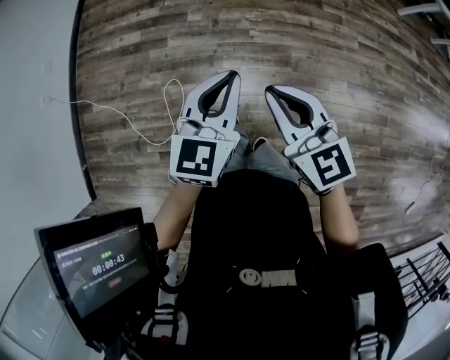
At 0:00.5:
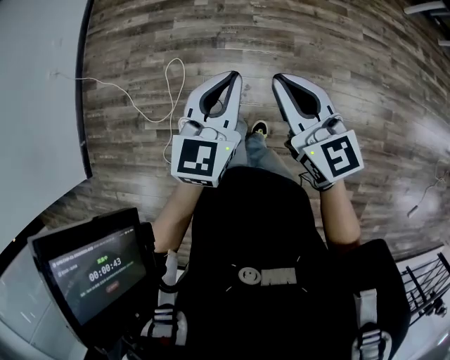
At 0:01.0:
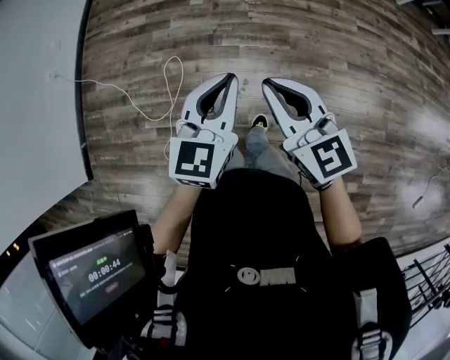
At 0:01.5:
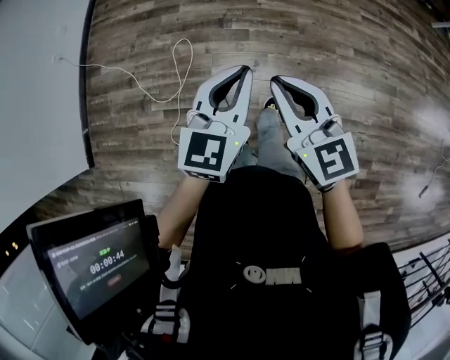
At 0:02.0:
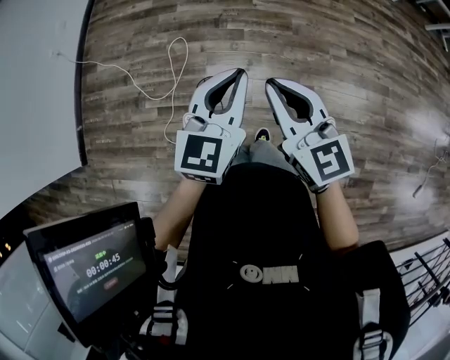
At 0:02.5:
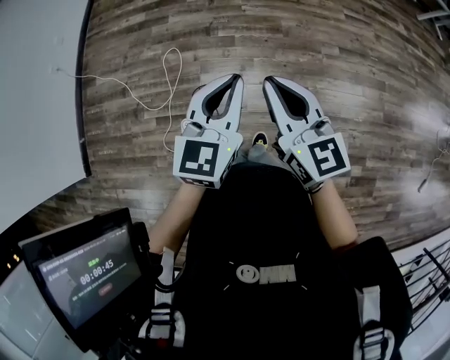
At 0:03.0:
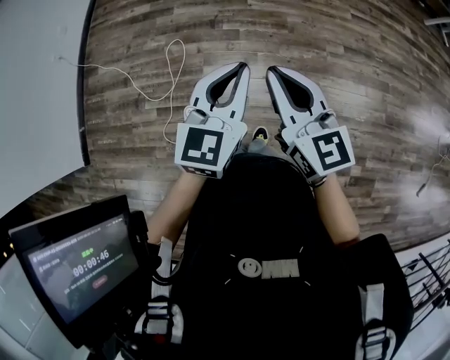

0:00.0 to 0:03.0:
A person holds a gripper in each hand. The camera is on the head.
0:00.0 to 0:01.5: The grippers both shift backward by about 30 cm.
0:01.5 to 0:03.0: The left gripper heads backward and to the right, covering about 10 cm. Meanwhile the right gripper travels to the right by about 5 cm.

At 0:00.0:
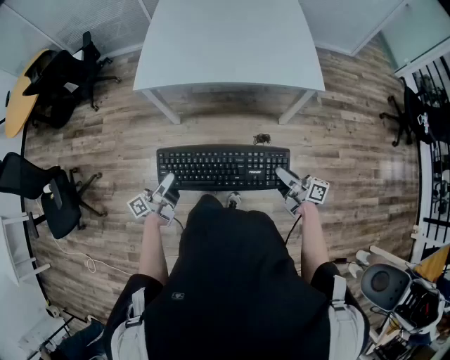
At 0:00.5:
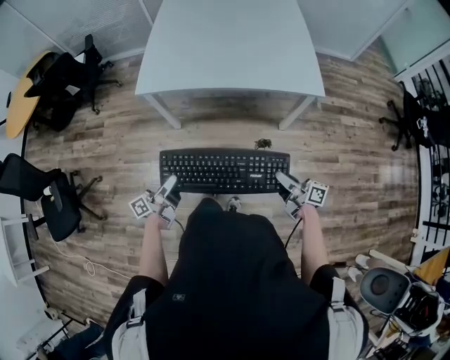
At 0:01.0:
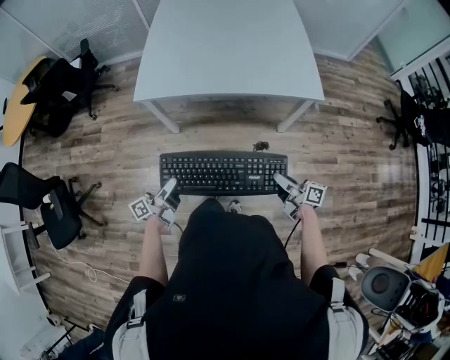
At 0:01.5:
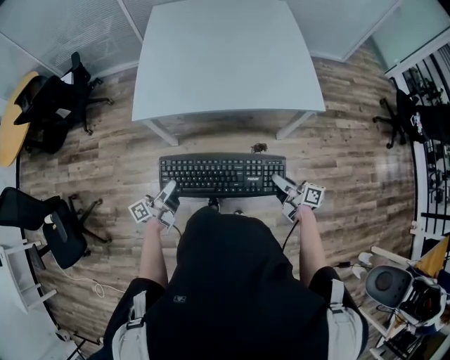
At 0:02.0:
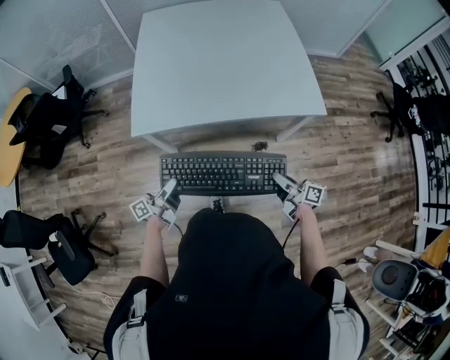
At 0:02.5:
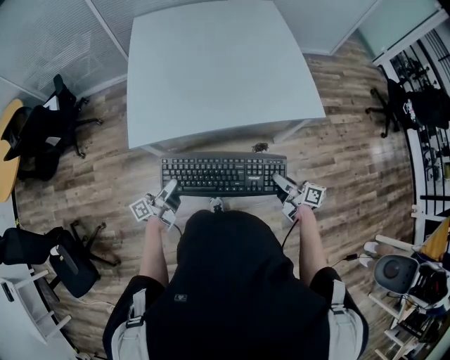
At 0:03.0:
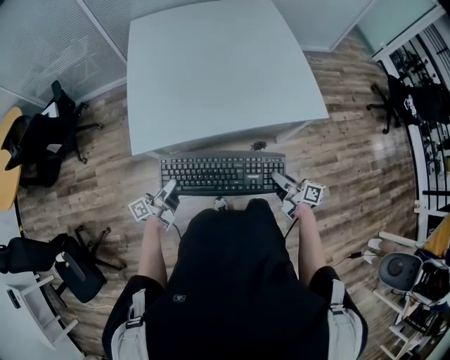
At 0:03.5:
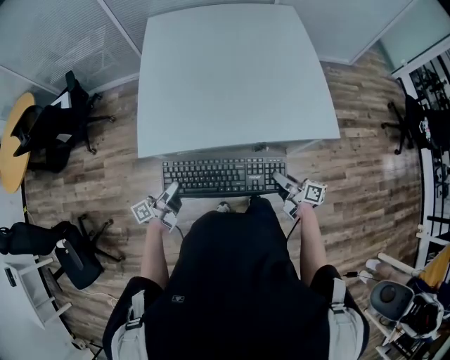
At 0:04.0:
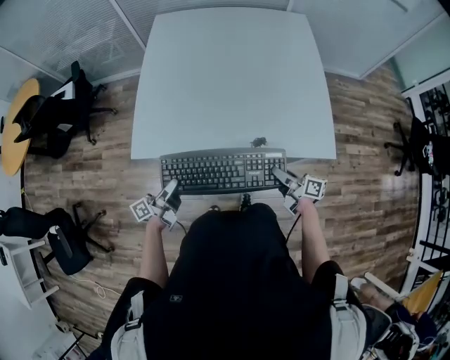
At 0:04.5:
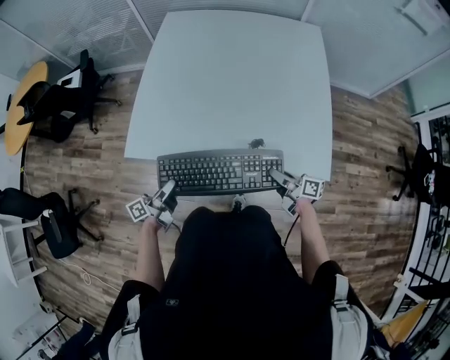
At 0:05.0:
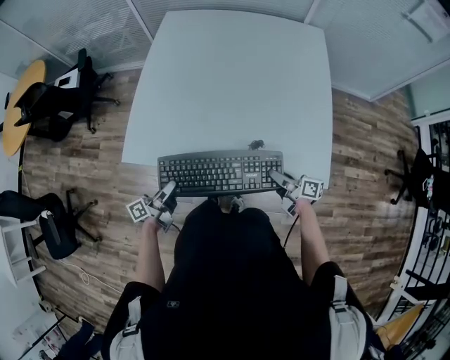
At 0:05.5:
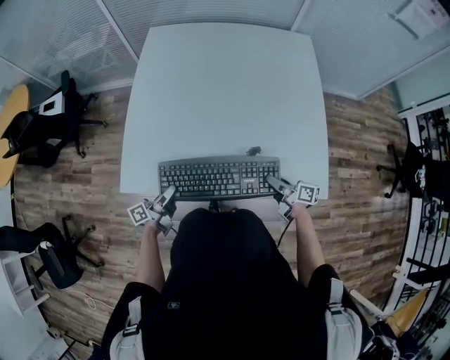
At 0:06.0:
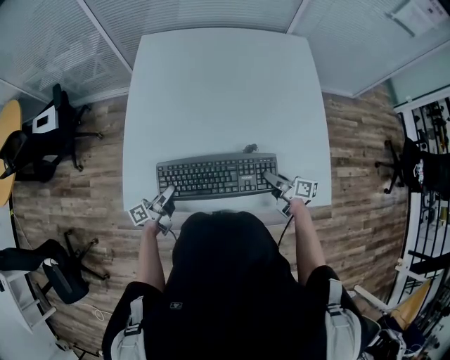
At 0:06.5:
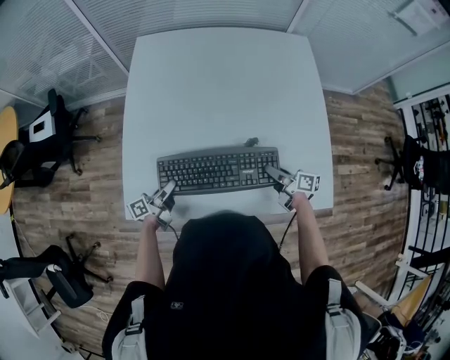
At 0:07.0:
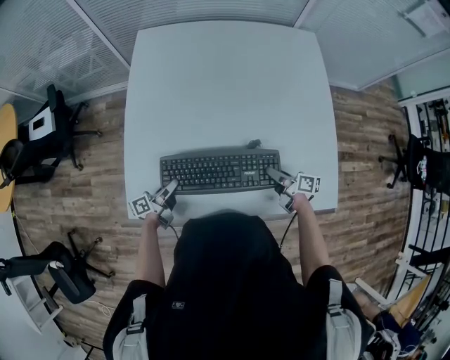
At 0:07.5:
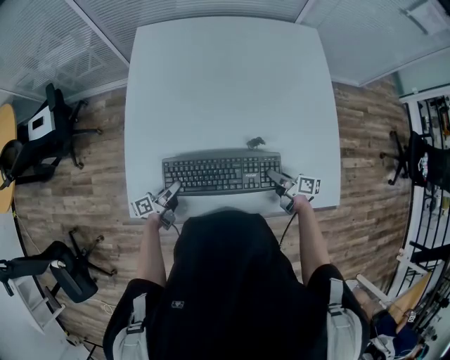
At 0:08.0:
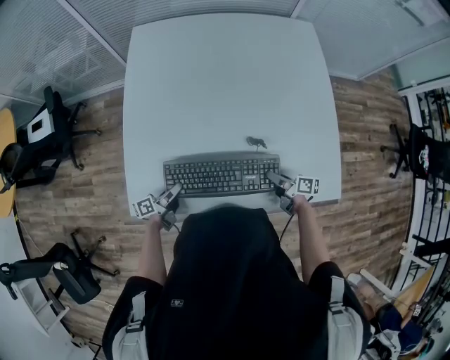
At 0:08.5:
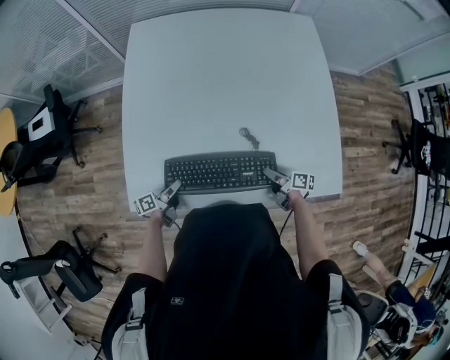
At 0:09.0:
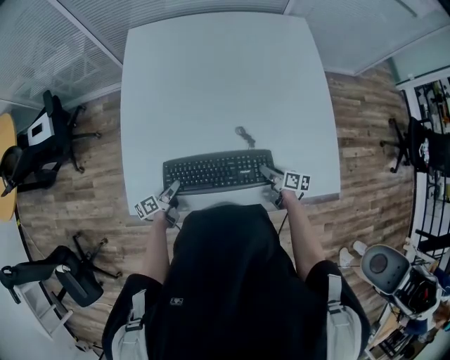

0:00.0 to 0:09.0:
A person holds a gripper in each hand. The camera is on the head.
0:00.0 to 0:02.0: Both grippers travel together forward, some 20 cm.
0:02.0 to 0:04.5: The left gripper travels forward and to the right by approximately 20 cm. The right gripper is displaced forward by about 25 cm.
0:04.5 to 0:07.0: The grippers both shift forward by some 25 cm.
0:07.0 to 0:09.0: The two grippers go some 5 cm downward.

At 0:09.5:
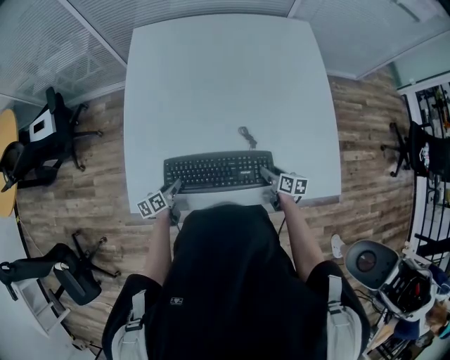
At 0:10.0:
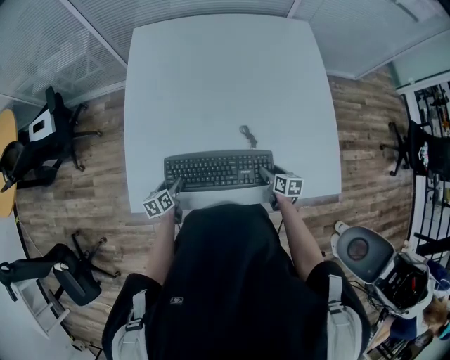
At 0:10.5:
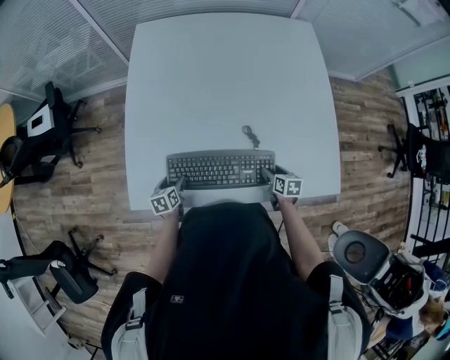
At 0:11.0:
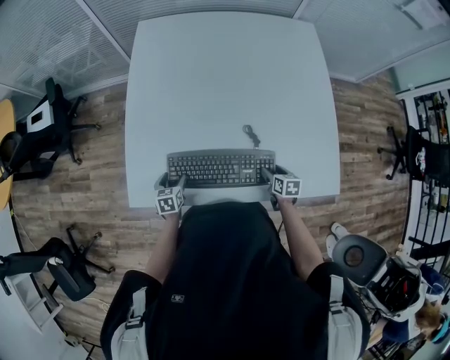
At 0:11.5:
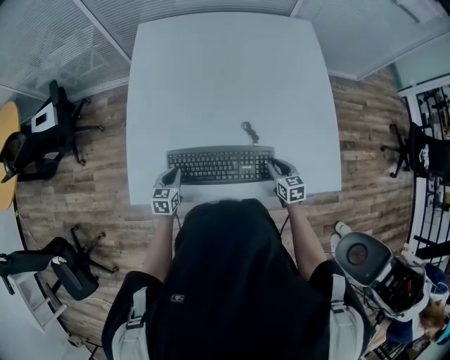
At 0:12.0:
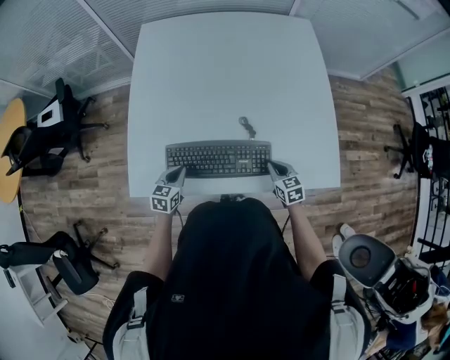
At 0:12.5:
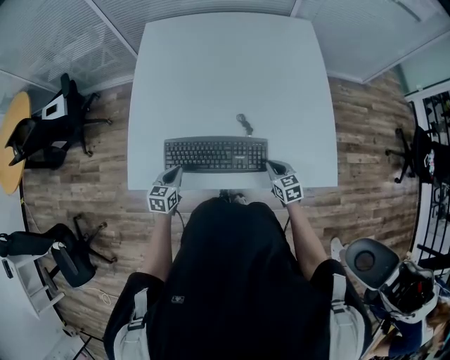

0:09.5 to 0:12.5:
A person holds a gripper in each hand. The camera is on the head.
0:09.5 to 0:11.0: The left gripper rotates about 40 degrees.
0:11.0 to 0:12.5: The right gripper moves upward, roughly 5 cm, turns by approximately 30 degrees, and closes, while the left gripper goes about 10 cm upward and to the right, and closes its fingers.

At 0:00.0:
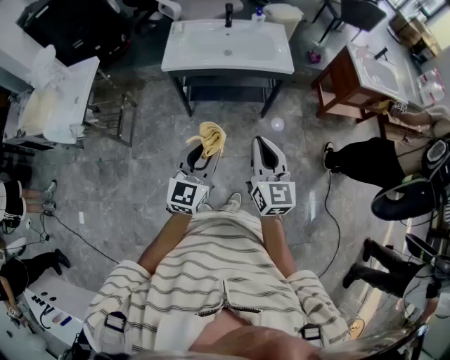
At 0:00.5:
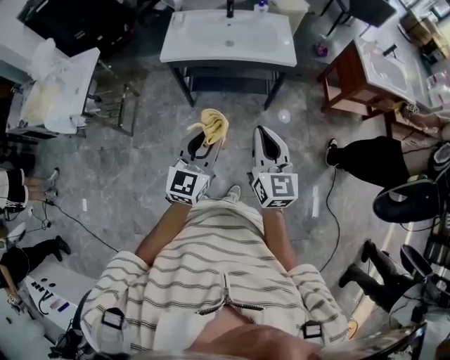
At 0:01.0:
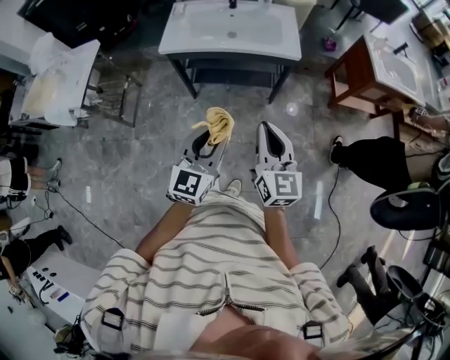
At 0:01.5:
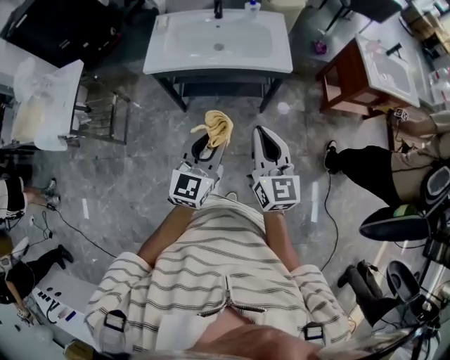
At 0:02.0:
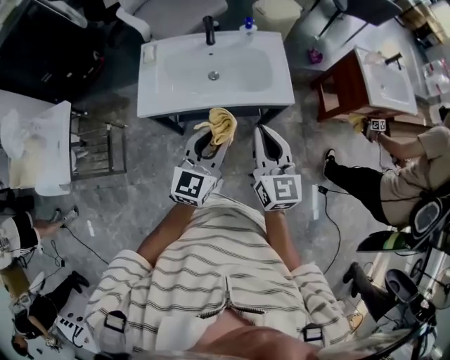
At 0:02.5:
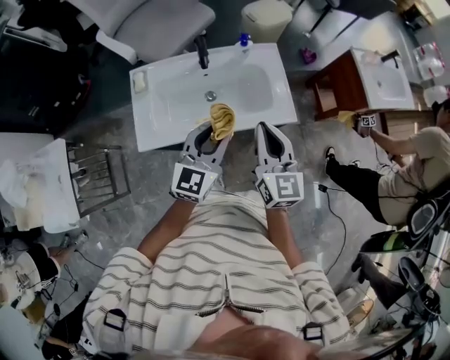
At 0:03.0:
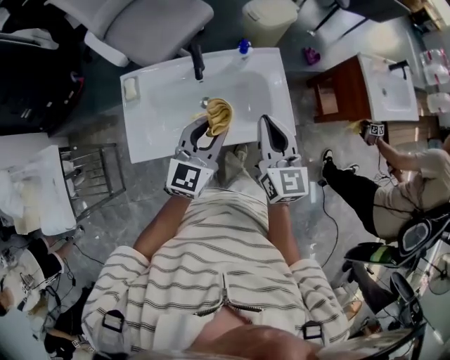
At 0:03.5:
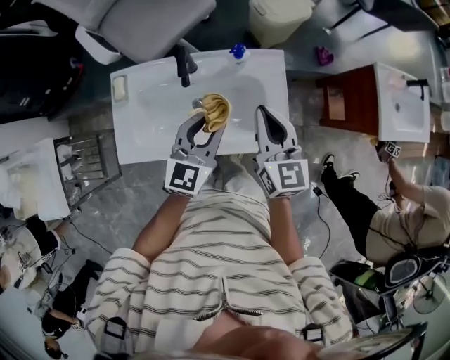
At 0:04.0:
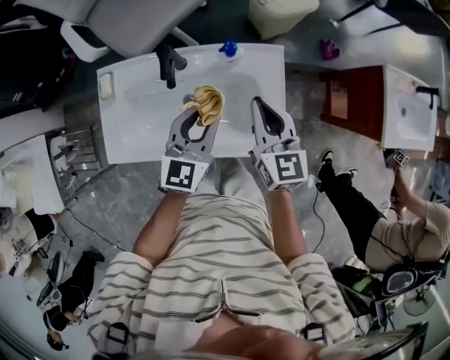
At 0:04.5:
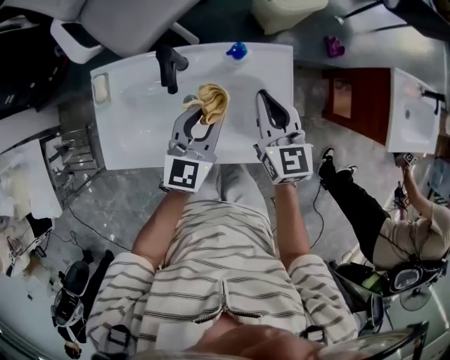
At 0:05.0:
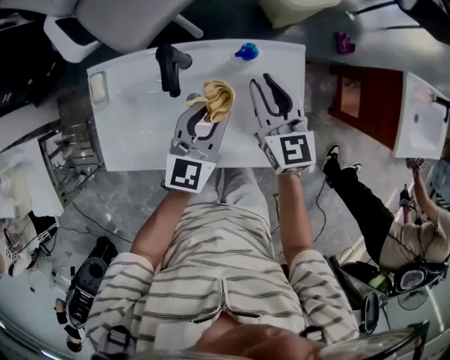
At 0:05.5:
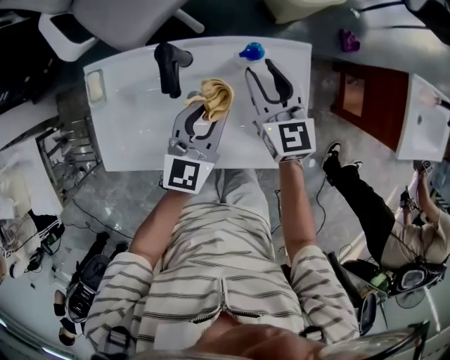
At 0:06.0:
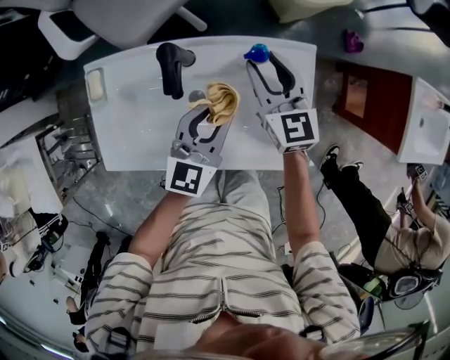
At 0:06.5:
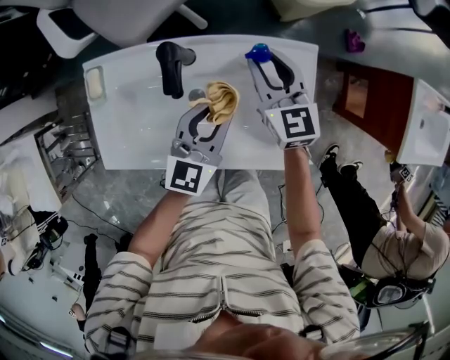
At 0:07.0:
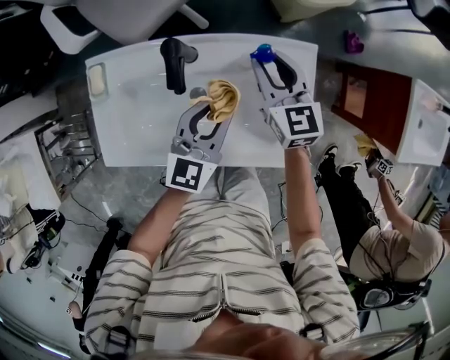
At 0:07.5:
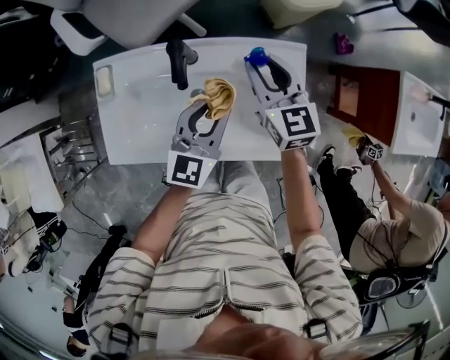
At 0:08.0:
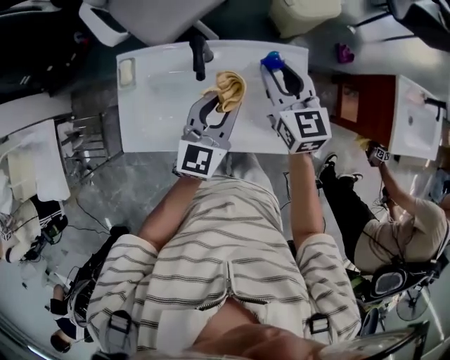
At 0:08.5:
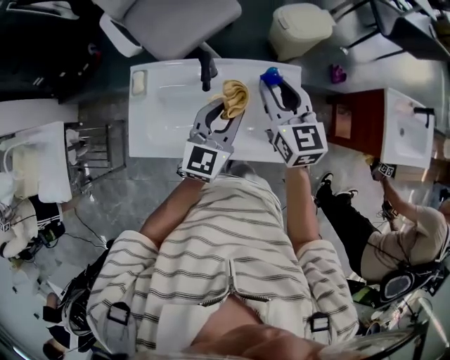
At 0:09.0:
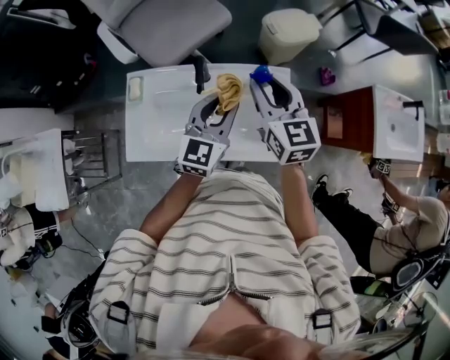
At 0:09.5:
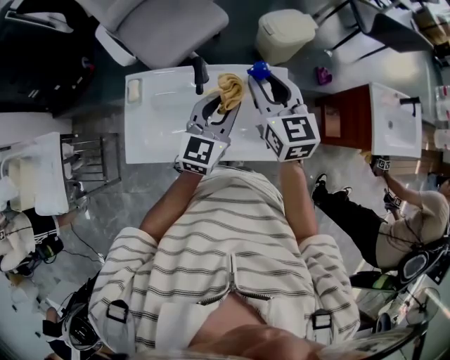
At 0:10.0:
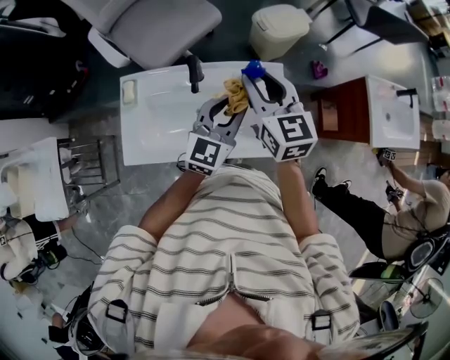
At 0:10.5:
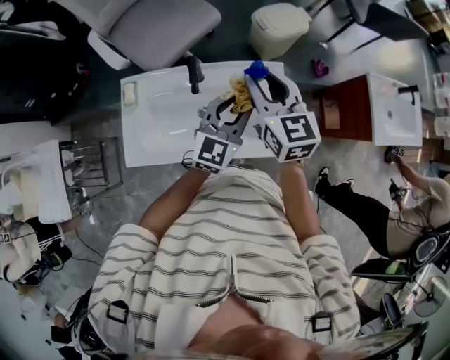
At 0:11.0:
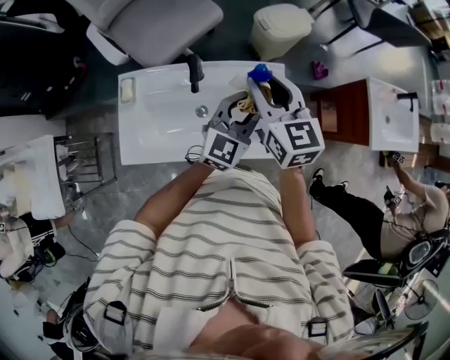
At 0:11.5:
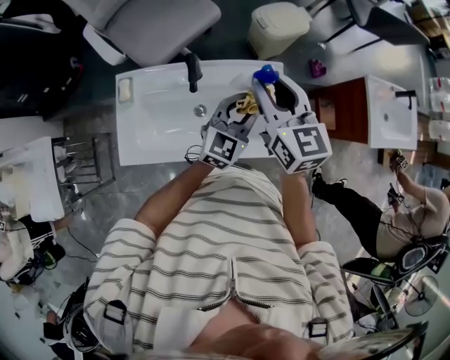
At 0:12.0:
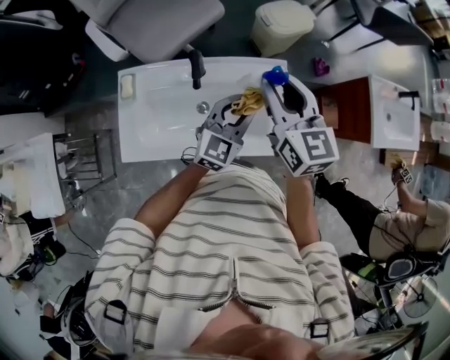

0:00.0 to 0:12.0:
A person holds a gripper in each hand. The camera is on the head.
0:00.0 to 0:02.0: Both grippers move forward, approximately 35 cm.
0:02.0 to 0:04.0: Both grippers travel together forward, approximately 35 cm.
0:04.0 to 0:06.0: The left gripper moves downward, some 10 cm. The right gripper travels forward, downward and to the left by some 20 cm, and opens up.
0:06.0 to 0:08.0: The grippers both shift upward by approximately 10 cm.
0:08.0 to 0:10.0: The right gripper is displaced upward by approximately 10 cm; the left gripper travels upward by about 5 cm.
0:10.0 to 0:12.0: The left gripper ends up approximately 5 cm from where it was.
